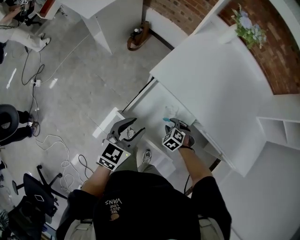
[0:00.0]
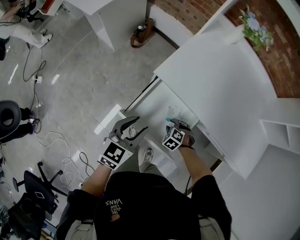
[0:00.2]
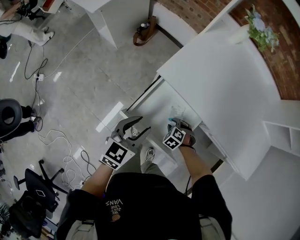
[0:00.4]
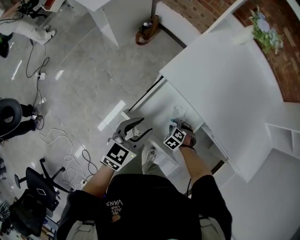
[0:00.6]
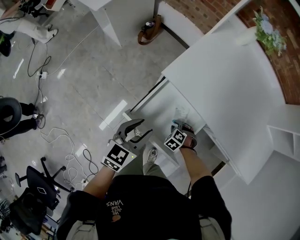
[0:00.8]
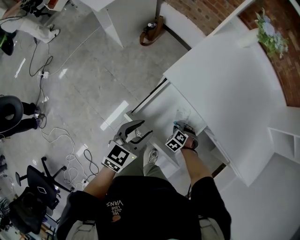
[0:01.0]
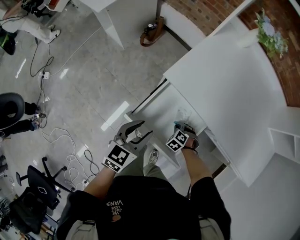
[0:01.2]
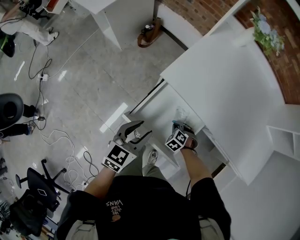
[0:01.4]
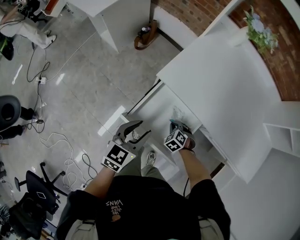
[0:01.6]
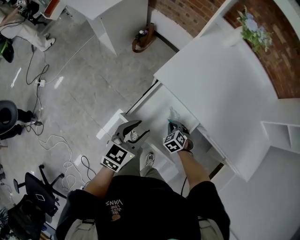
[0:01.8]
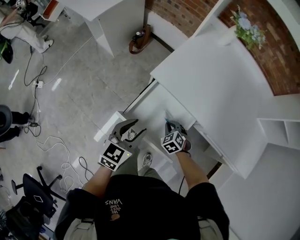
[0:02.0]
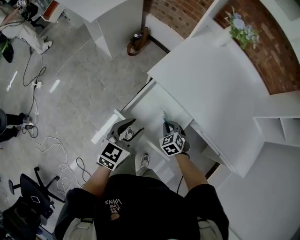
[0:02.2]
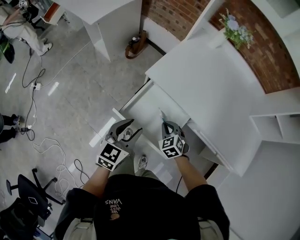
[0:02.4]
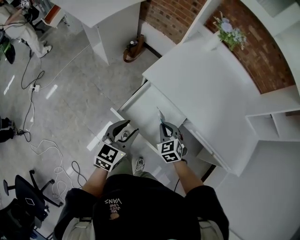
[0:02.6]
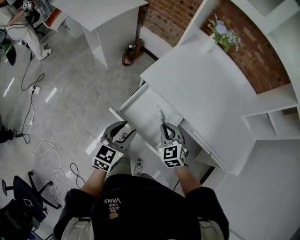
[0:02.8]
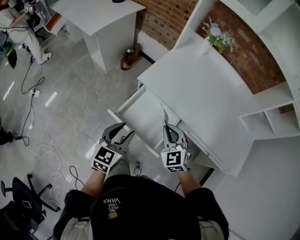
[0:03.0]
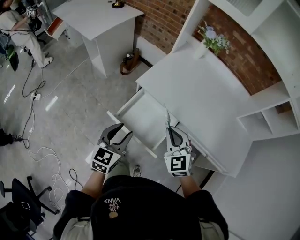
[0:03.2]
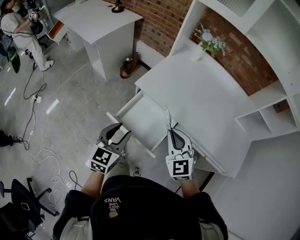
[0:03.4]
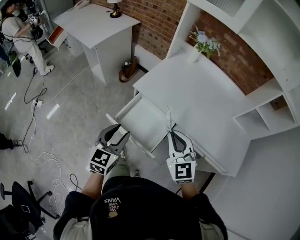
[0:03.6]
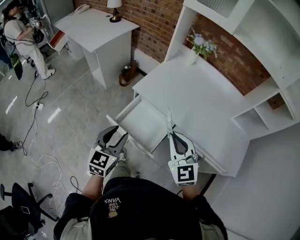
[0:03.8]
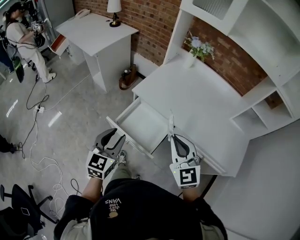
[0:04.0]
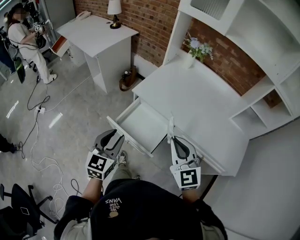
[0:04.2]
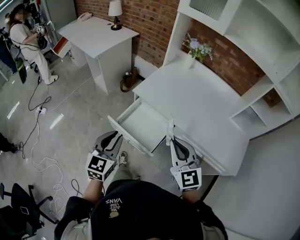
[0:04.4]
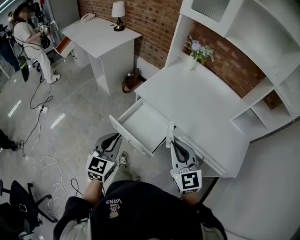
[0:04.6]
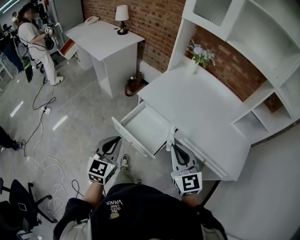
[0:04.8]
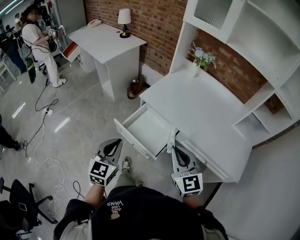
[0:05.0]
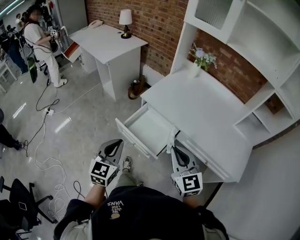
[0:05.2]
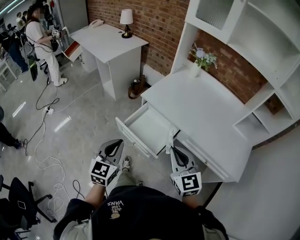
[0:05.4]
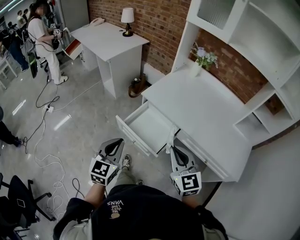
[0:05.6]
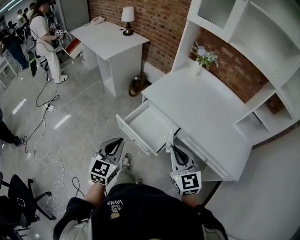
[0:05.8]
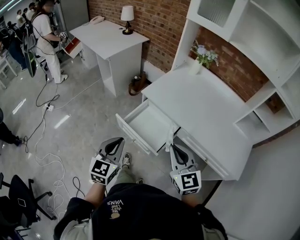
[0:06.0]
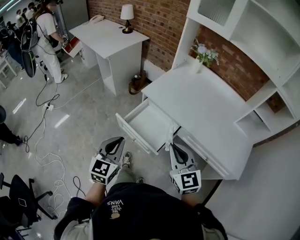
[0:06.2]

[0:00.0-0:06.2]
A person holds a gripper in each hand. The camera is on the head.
0:00.0 to 0:01.6: The right gripper closes its fingers.
0:01.6 to 0:03.2: The left gripper is displaced upward and backward by roughly 15 cm. The right gripper heads upward, covering about 35 cm, and tilts its fingers roughly 50 degrees upward.
0:03.2 to 0:04.6: Both grippers move backward and upward, about 15 cm. The left gripper closes its fingers.
0:04.6 to 0:06.2: The grippers move only a little.

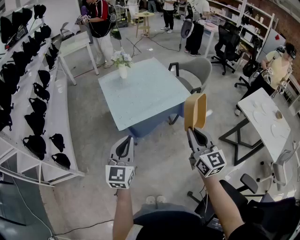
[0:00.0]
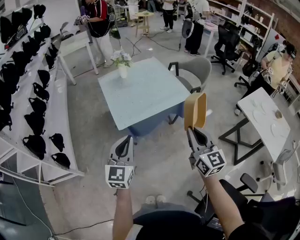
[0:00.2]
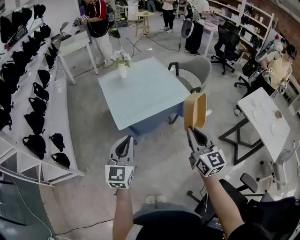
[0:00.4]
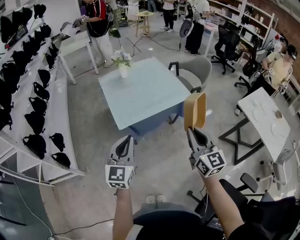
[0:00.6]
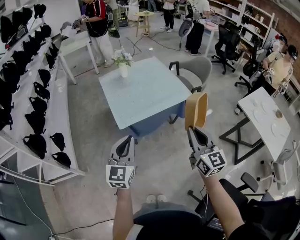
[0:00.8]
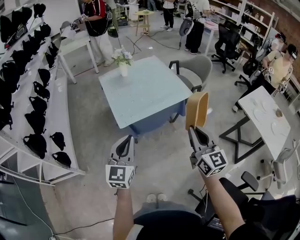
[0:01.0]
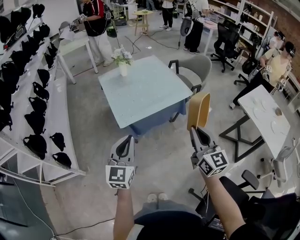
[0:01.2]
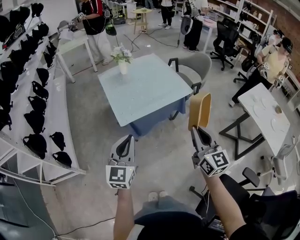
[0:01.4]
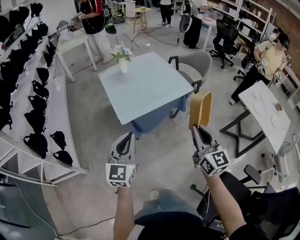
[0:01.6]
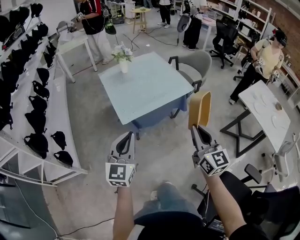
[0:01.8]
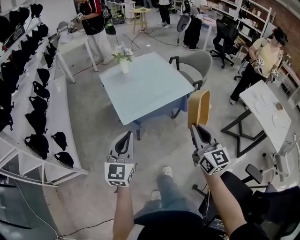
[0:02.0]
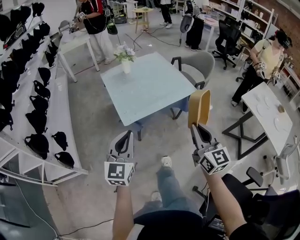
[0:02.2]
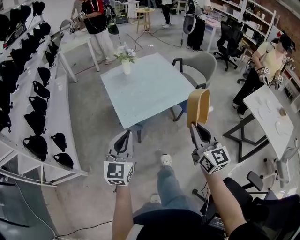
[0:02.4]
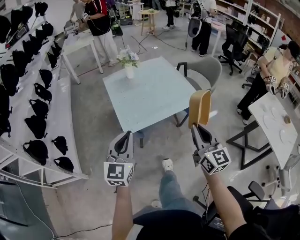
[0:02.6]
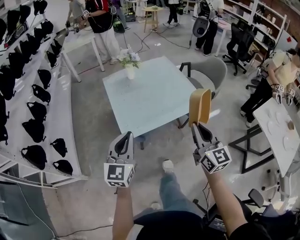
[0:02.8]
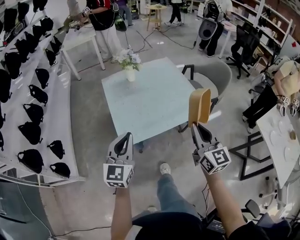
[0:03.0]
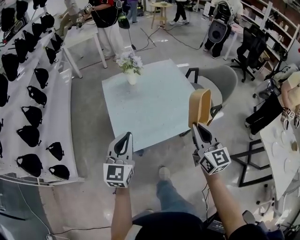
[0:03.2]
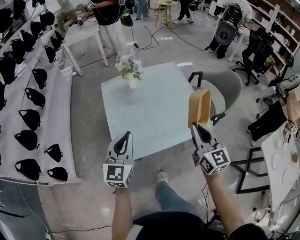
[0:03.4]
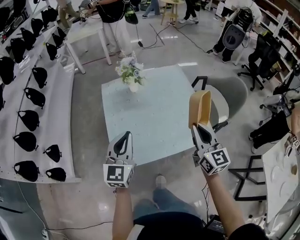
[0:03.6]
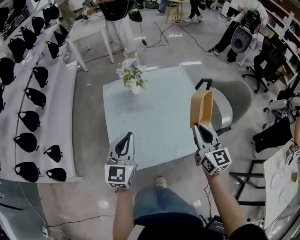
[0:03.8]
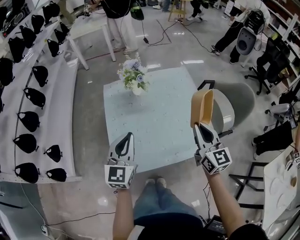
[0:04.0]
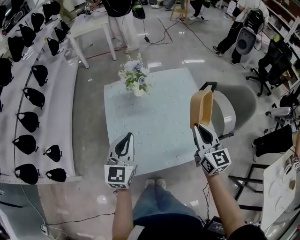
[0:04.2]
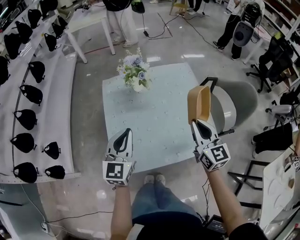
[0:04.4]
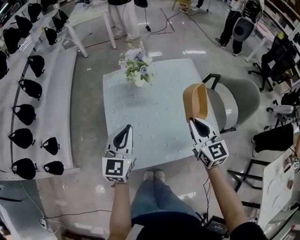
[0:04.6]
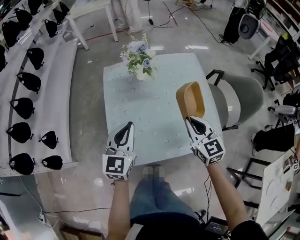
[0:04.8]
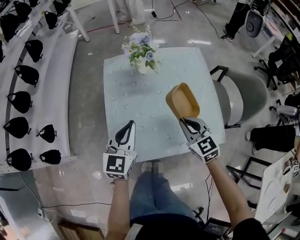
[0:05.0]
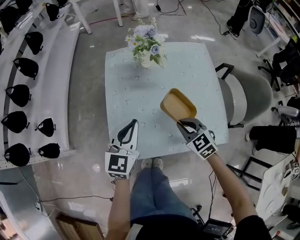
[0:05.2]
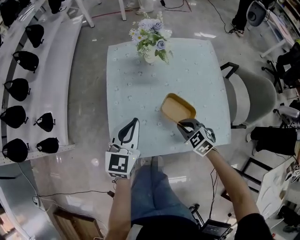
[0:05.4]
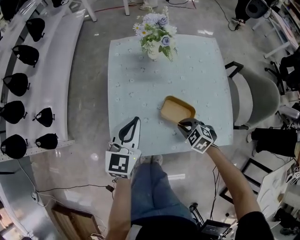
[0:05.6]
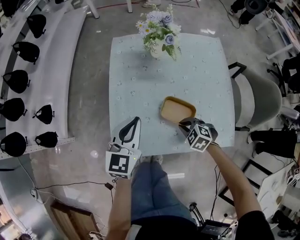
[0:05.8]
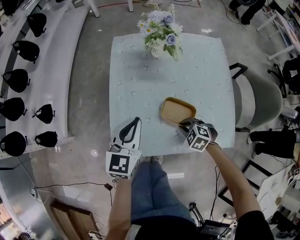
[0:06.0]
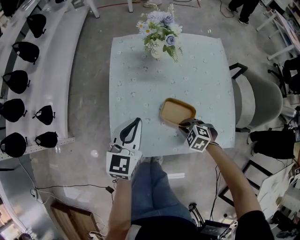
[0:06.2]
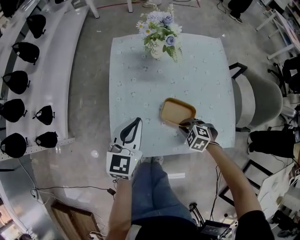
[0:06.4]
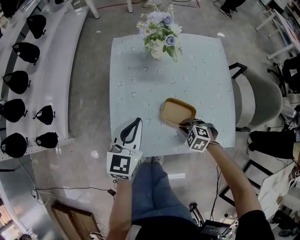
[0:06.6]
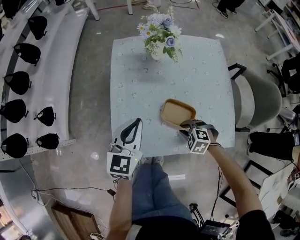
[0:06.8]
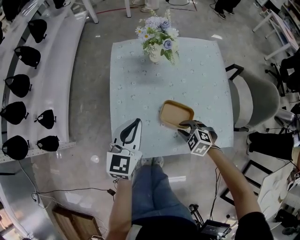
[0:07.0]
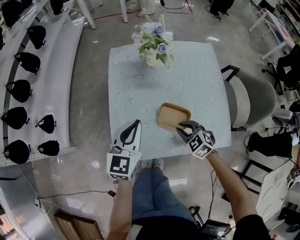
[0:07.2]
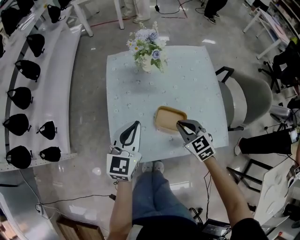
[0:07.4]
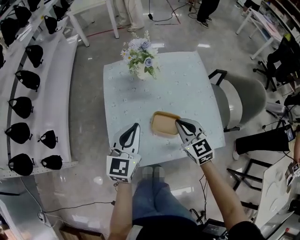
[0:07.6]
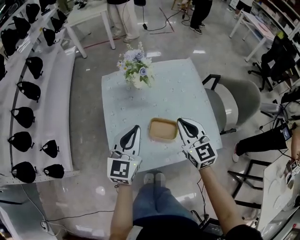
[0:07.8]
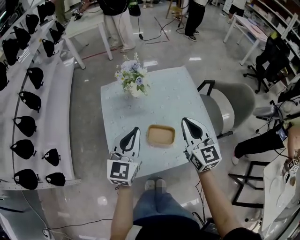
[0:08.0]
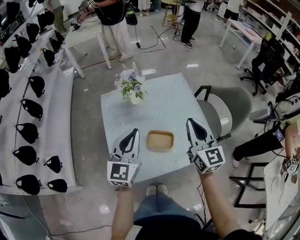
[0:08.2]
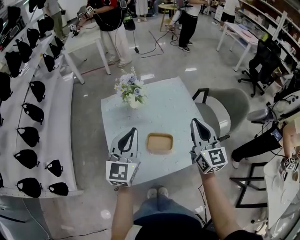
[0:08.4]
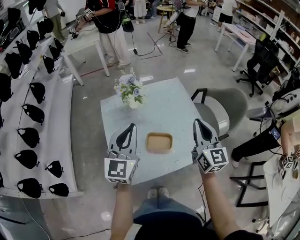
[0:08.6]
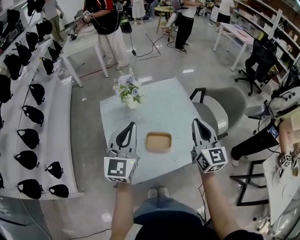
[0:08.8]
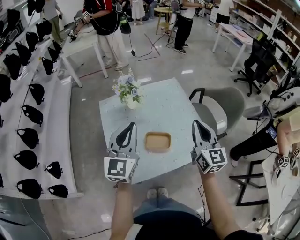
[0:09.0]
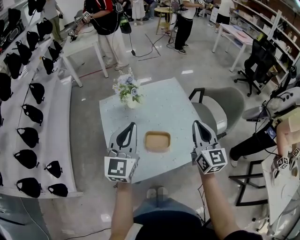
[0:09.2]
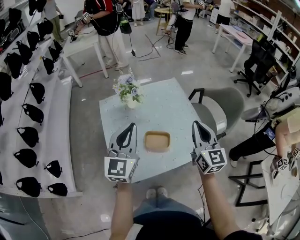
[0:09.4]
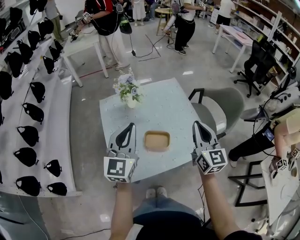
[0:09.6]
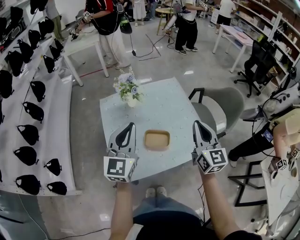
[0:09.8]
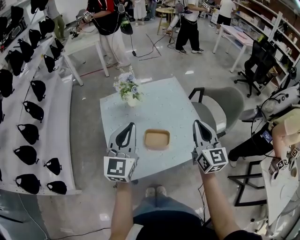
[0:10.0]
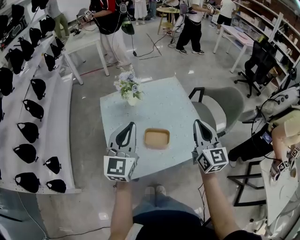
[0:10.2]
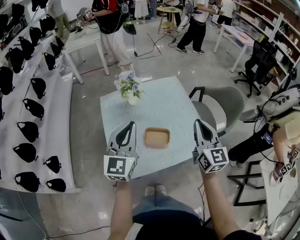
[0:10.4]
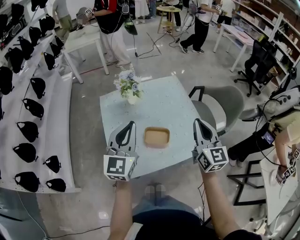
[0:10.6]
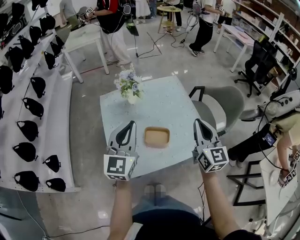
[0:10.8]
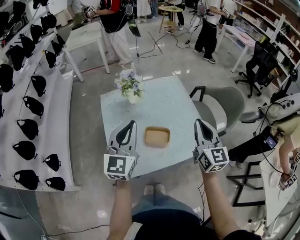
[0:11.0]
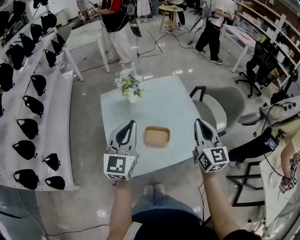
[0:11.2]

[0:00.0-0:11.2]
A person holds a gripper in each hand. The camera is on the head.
0:00.0 to 0:01.6: The grippers stay close to where they were, moving slightly.
0:01.6 to 0:03.2: The grippers both shift forward by approximately 30 cm.
0:03.2 to 0:04.8: The right gripper is displaced forward and downward by roughly 25 cm, and swivels about 30 degrees. The left gripper heads forward, covering approximately 20 cm.
0:04.8 to 0:06.4: The left gripper is displaced downward by roughly 10 cm. The right gripper travels downward by roughly 25 cm, and tilts its fingers about 50 degrees downward.
0:06.4 to 0:08.0: The right gripper goes about 35 cm upward, and angles its fingers upward, by approximately 60 degrees; the left gripper is displaced upward by approximately 15 cm.
0:08.0 to 0:09.6: The left gripper moves upward, approximately 10 cm, while the right gripper moves to the right, upward and backward, roughly 10 cm.
0:09.6 to 0:11.2: Both grippers stay about where they are.

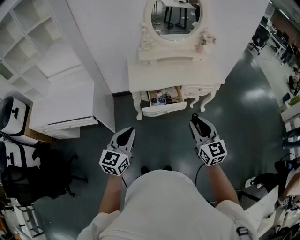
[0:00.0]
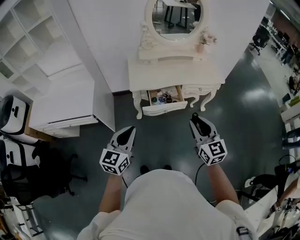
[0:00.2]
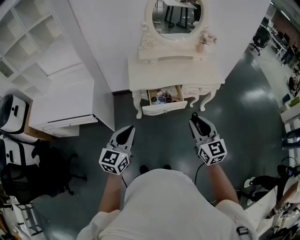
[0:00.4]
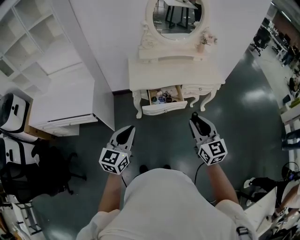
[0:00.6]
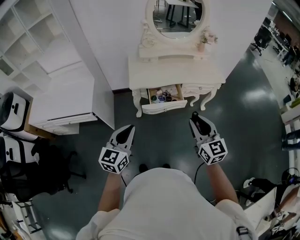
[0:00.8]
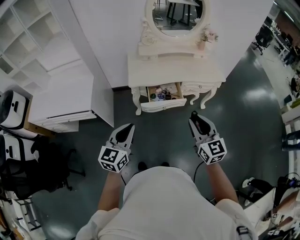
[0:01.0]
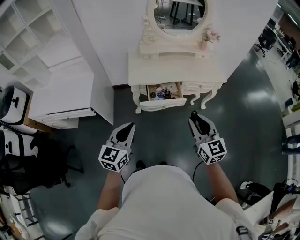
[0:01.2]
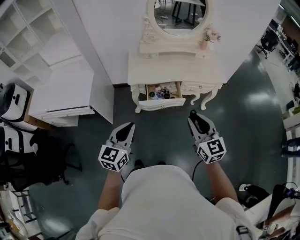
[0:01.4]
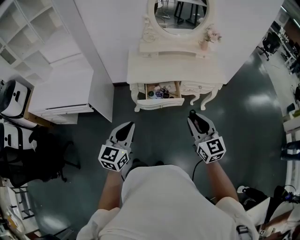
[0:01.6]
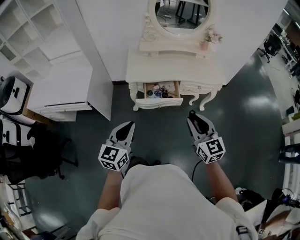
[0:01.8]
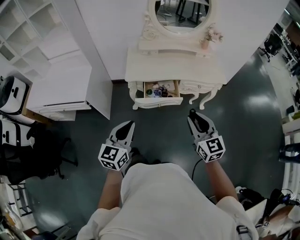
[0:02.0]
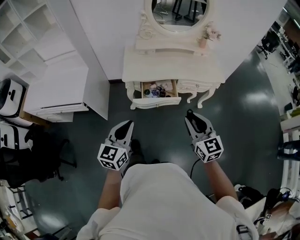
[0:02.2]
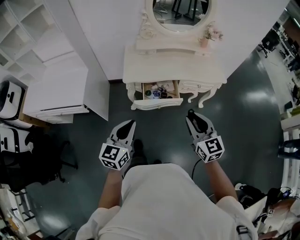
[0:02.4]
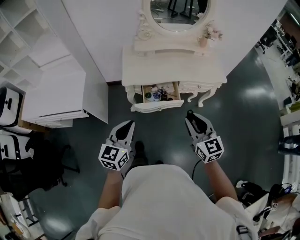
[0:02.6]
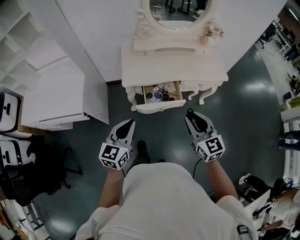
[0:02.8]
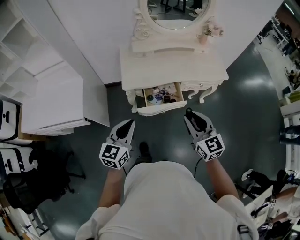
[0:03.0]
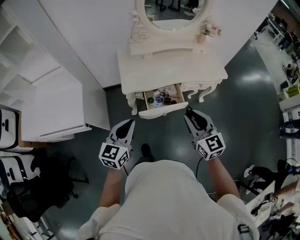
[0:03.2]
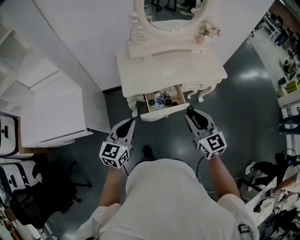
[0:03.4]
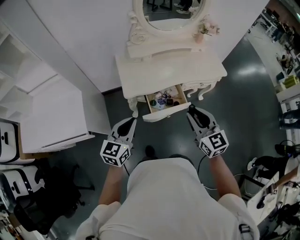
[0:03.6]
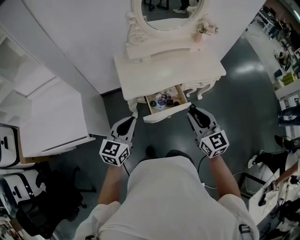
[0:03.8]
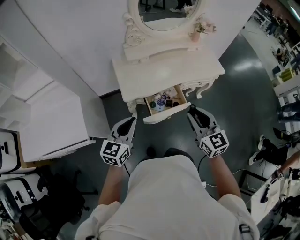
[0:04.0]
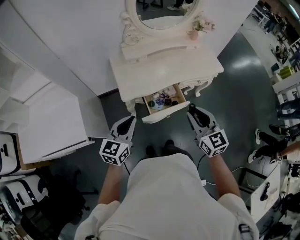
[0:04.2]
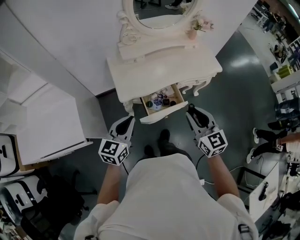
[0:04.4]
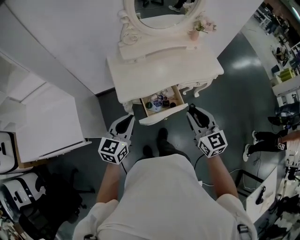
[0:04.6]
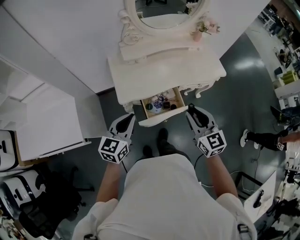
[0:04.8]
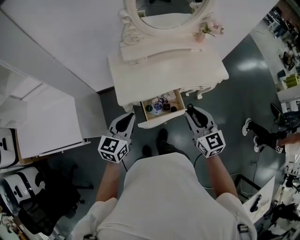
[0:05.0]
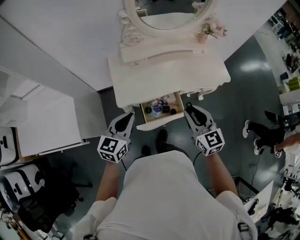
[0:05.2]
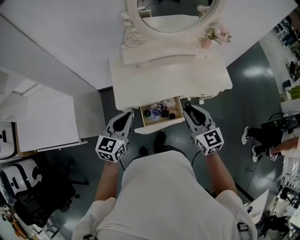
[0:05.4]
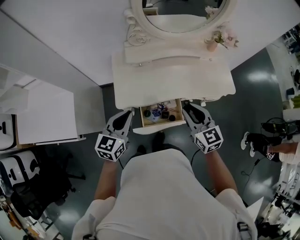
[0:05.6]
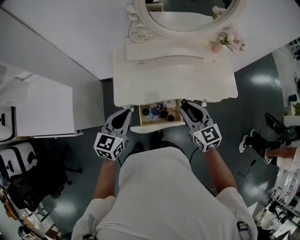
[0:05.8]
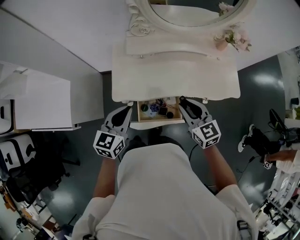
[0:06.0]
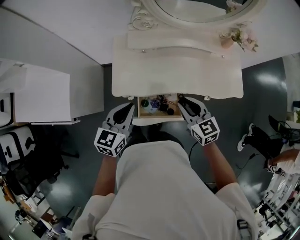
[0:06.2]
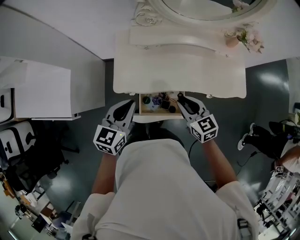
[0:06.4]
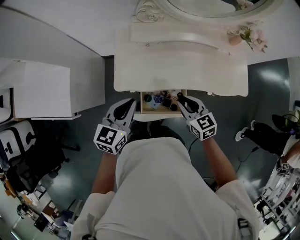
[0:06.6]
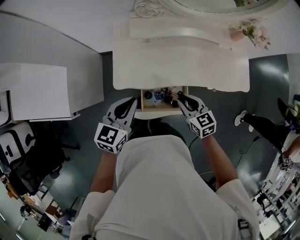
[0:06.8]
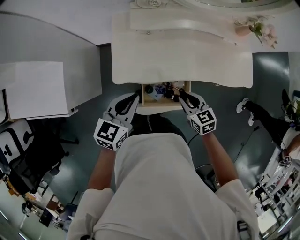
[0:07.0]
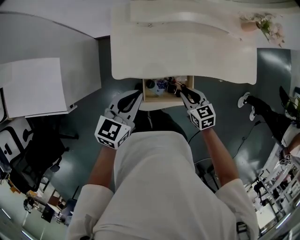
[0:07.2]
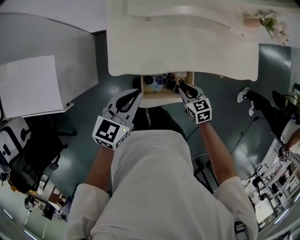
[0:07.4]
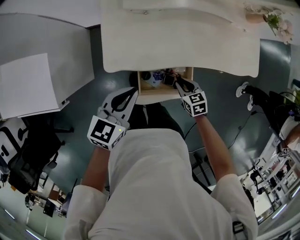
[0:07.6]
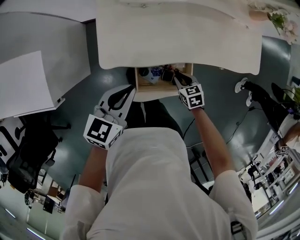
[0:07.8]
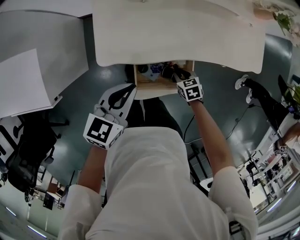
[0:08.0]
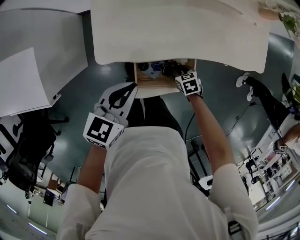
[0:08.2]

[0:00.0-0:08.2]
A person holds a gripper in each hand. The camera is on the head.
0:00.0 to 0:01.6: The right gripper moves roughly 5 cm. Meanwhile the left gripper goes approximately 5 cm to the right.
0:01.6 to 0:03.2: The right gripper heads forward and to the left, covering roughly 15 cm; the left gripper heads forward, covering about 15 cm.
0:03.2 to 0:05.0: Both grippers move forward, about 15 cm.
0:05.0 to 0:06.6: The left gripper moves forward and to the right, some 10 cm; the right gripper goes about 20 cm downward and forward, and turns by approximately 30 degrees.
0:06.6 to 0:08.2: The right gripper is displaced downward by some 30 cm, and angles its fingers downward, by approximately 40 degrees, while the left gripper heads downward, covering approximately 10 cm.
